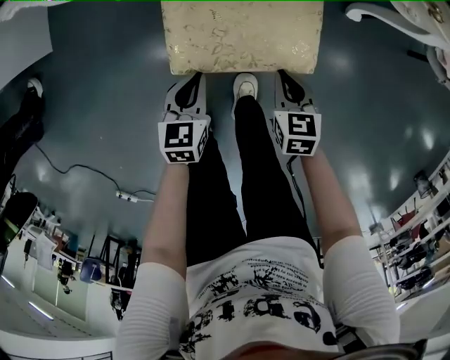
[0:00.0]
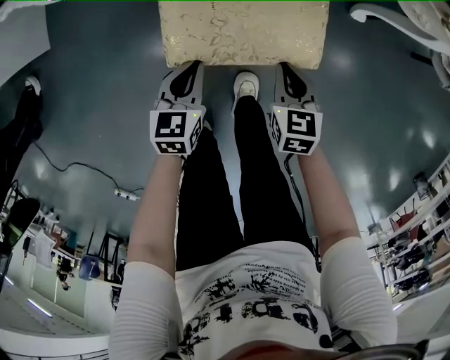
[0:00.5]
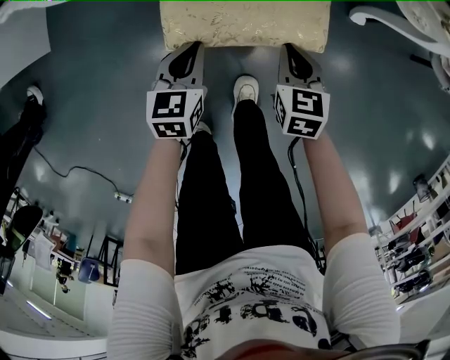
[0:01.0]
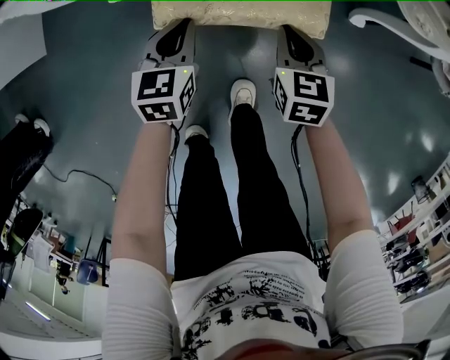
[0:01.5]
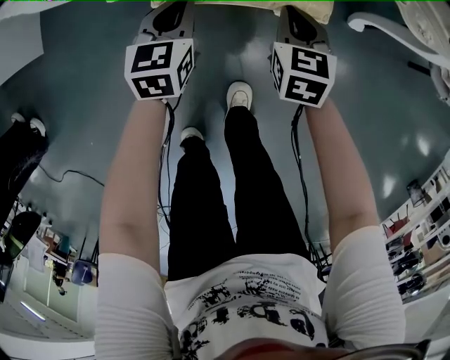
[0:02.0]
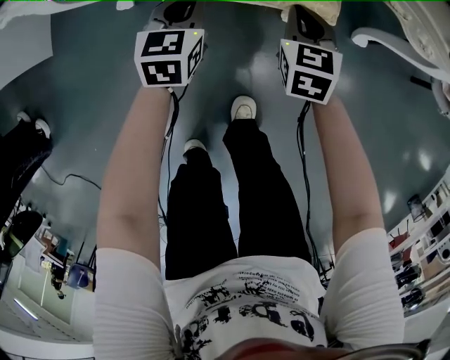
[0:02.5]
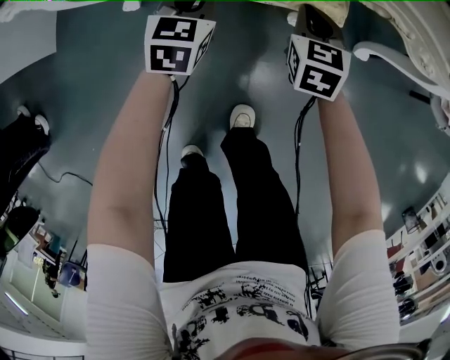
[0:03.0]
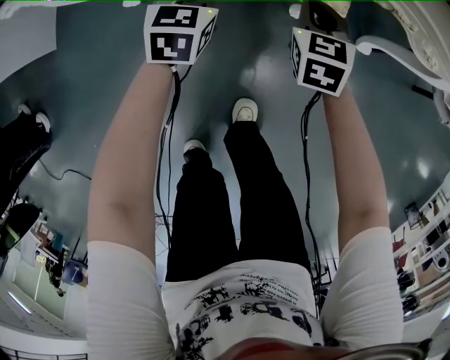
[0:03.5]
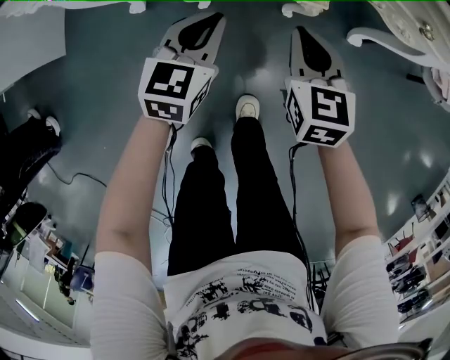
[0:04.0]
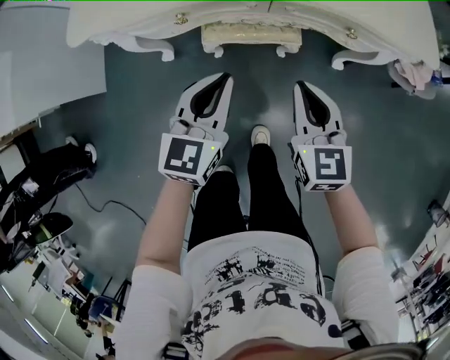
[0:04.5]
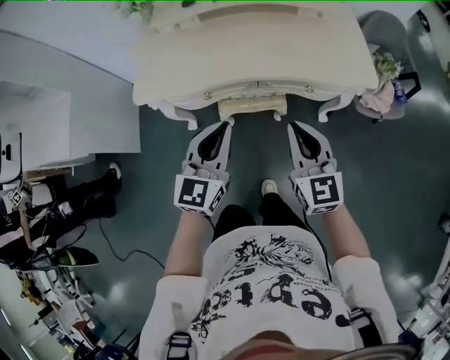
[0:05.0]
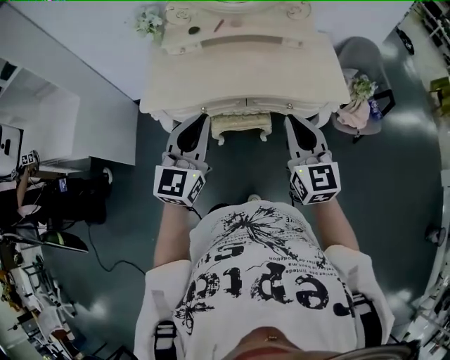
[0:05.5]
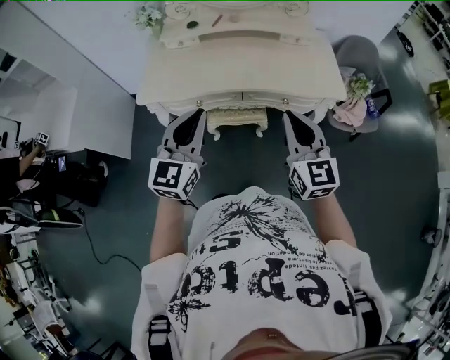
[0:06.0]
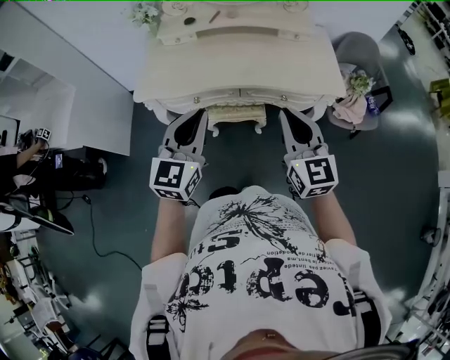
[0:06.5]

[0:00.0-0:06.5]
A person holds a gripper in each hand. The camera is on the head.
0:00.0 to 0:02.0: Both grippers move forward, some 20 cm.
0:02.0 to 0:04.5: The two grippers go roughly 35 cm upward. The right gripper rotates roughly 20 degrees. The left gripper turns by approximately 20 degrees.
0:04.5 to 0:06.5: The grippers both shift upward by approximately 35 cm. The right gripper changes its angle by about 20 degrees.

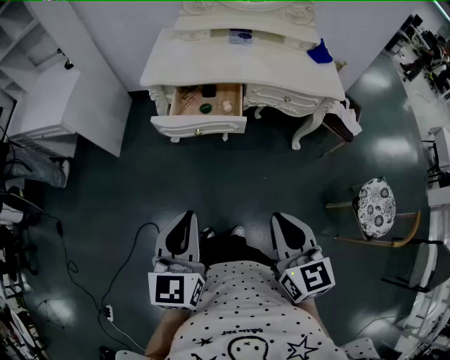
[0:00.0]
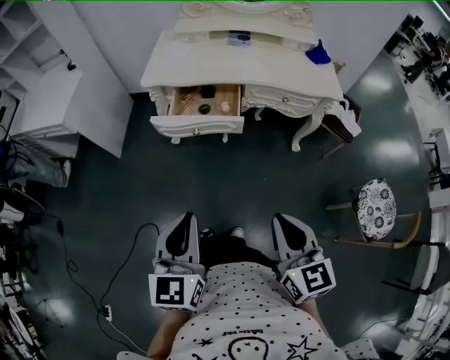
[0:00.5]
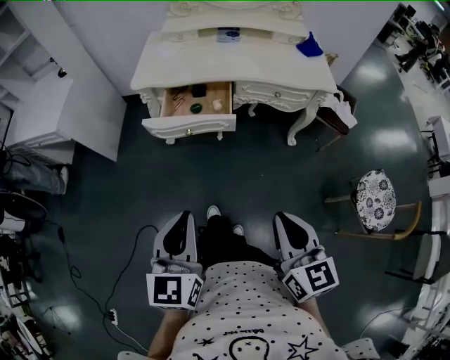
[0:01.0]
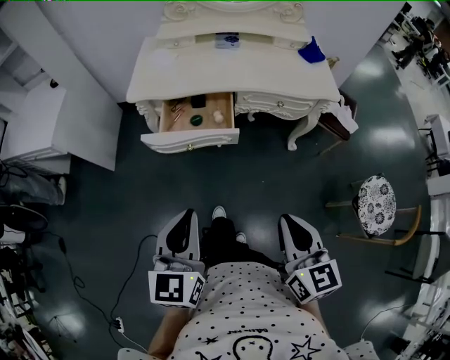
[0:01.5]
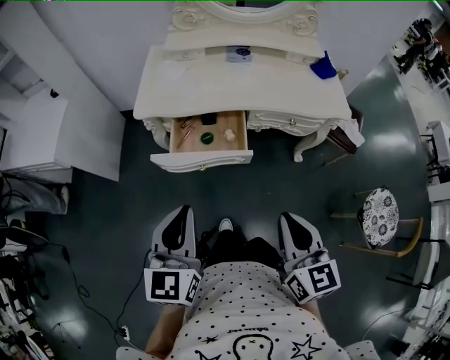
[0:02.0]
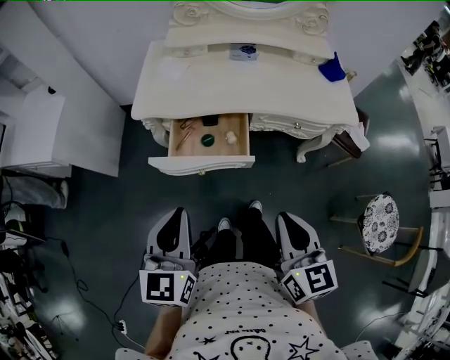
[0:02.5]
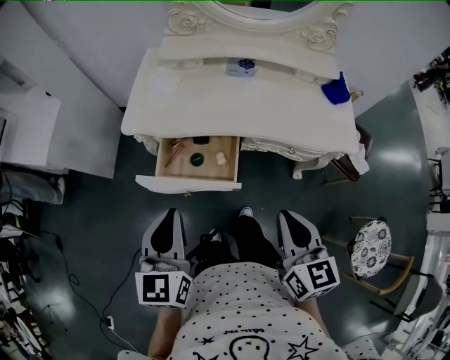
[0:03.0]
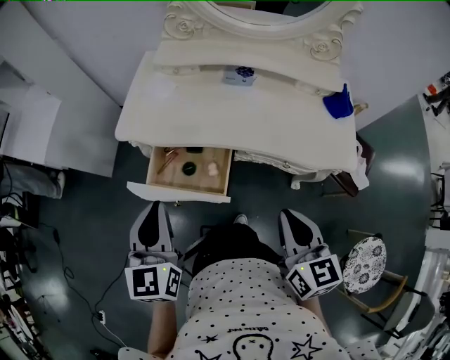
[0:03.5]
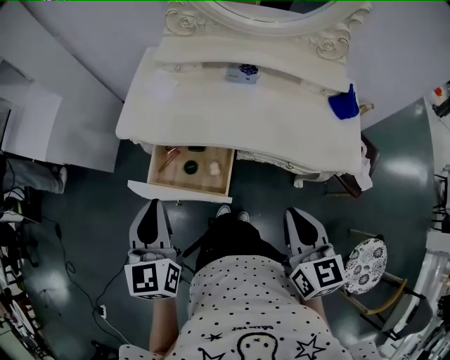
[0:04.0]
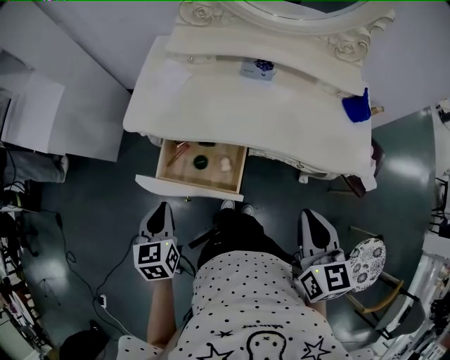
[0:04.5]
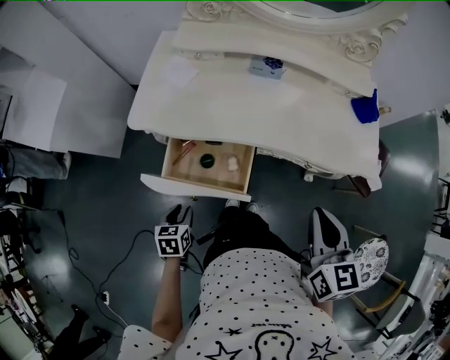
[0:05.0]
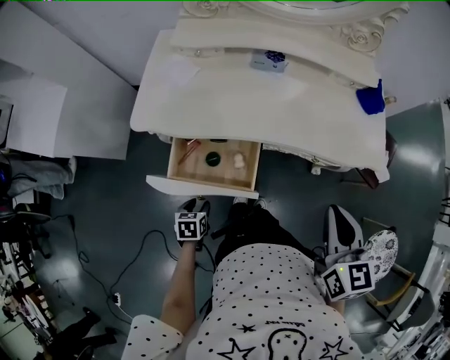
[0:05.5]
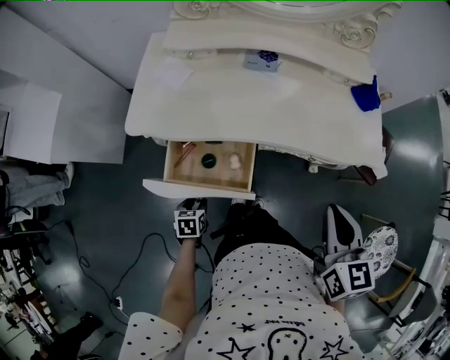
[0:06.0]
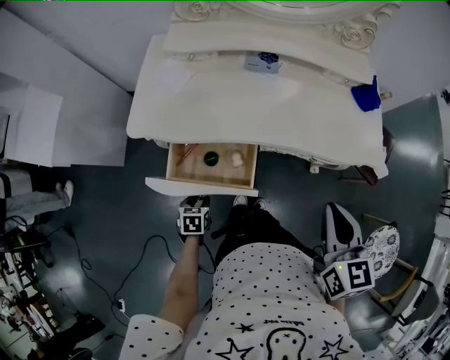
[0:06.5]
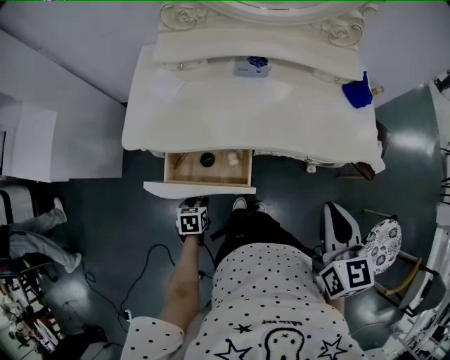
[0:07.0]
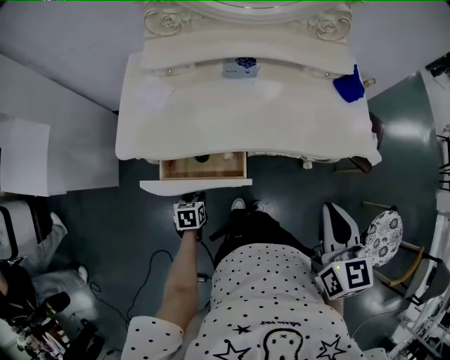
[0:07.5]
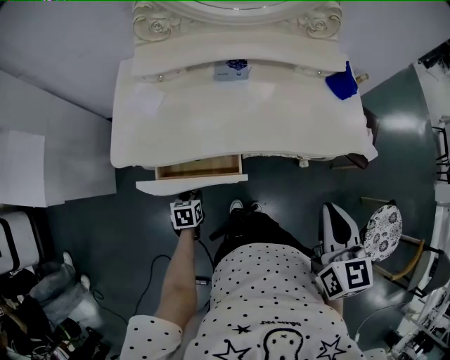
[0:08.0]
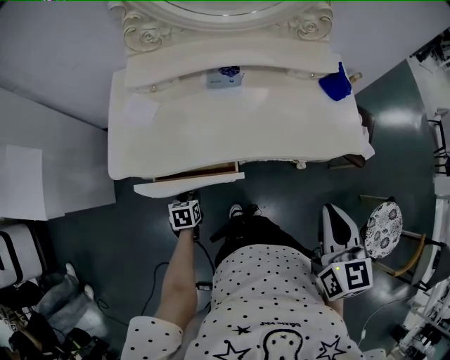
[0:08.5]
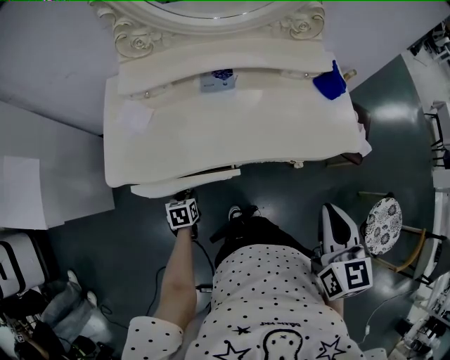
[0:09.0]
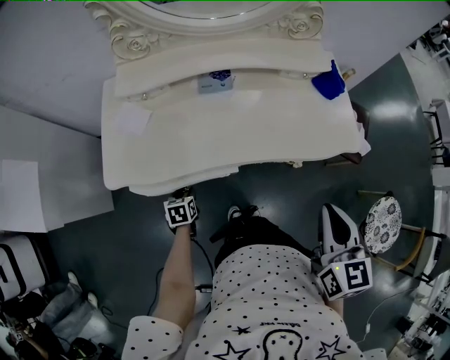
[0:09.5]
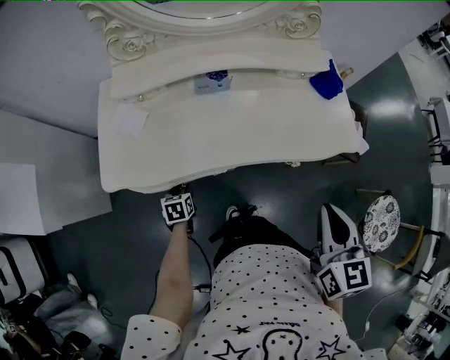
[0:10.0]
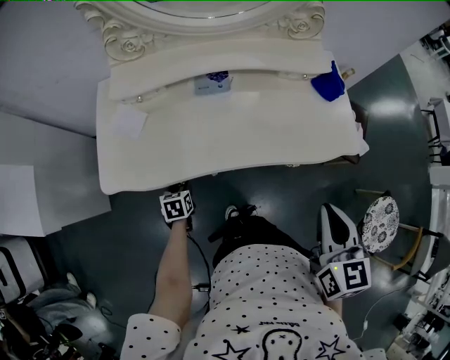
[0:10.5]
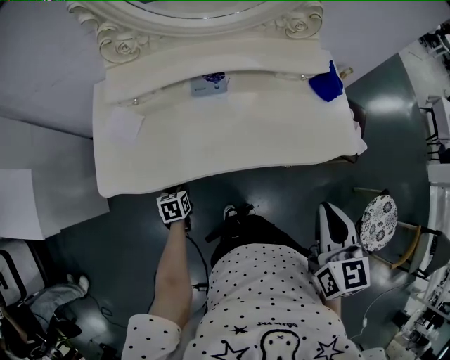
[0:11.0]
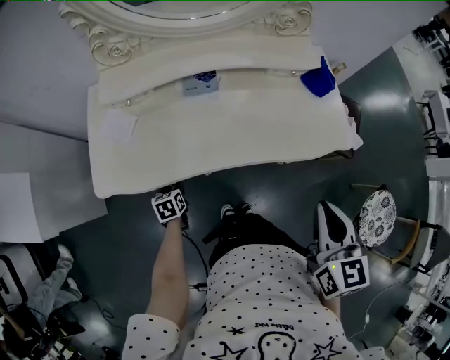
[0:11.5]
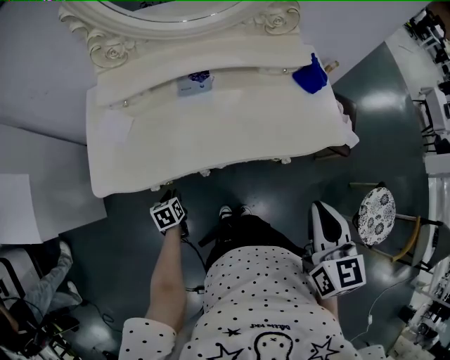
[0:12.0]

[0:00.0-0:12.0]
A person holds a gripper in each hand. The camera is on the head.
0:00.0 to 0:02.0: The two grippers go approximately 15 cm forward.
0:02.0 to 0:04.0: The left gripper travels forward by some 20 cm, and rotates about 20 degrees. The right gripper heads forward and to the right, covering about 25 cm.
0:04.0 to 0:06.0: The left gripper heads downward, covering about 35 cm, tilts its fingers about 50 degrees downward, and opens.
0:06.0 to 0:08.0: The left gripper moves forward, approximately 10 cm.
0:08.0 to 0:10.0: The left gripper goes roughly 10 cm forward.
0:10.0 to 0:12.0: The grippers make only small movements.

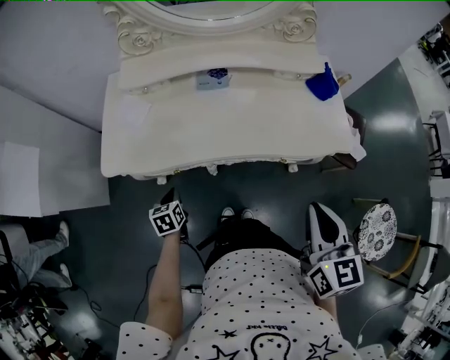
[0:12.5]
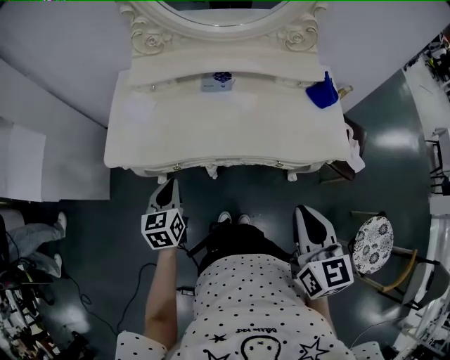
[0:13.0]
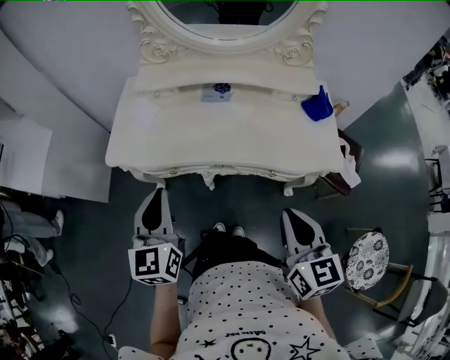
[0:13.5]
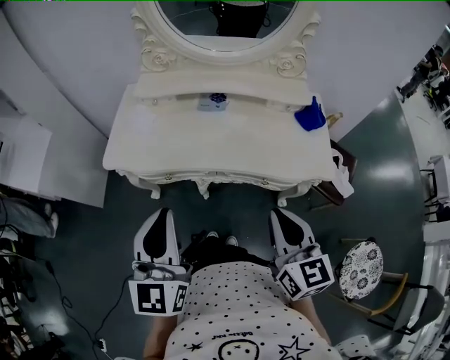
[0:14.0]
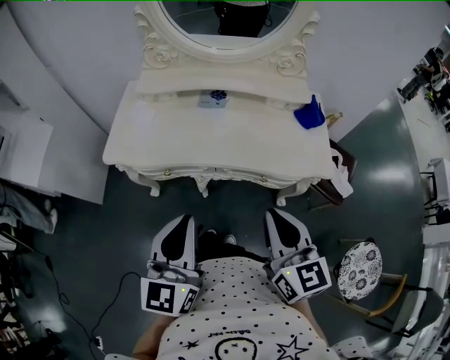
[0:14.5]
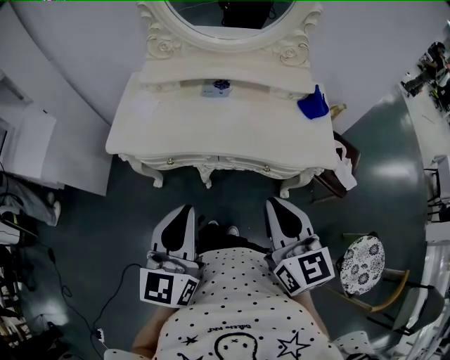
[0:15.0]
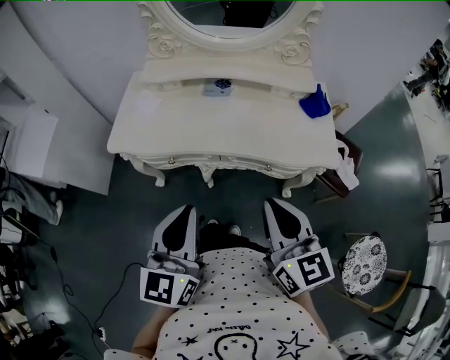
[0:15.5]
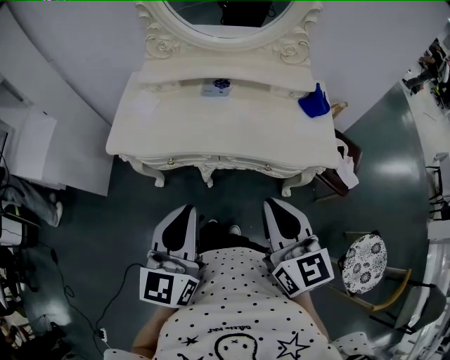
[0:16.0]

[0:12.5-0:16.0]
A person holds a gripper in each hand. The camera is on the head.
0:12.5 to 0:14.5: The left gripper heads upward, to the right and backward, covering approximately 40 cm, and angles its fingers upward, by approximately 50 degrees. The right gripper changes place by approximately 5 cm, and changes its angle by approximately 20 degrees.
0:14.5 to 0:16.0: There are only small adjustments of the grippers.

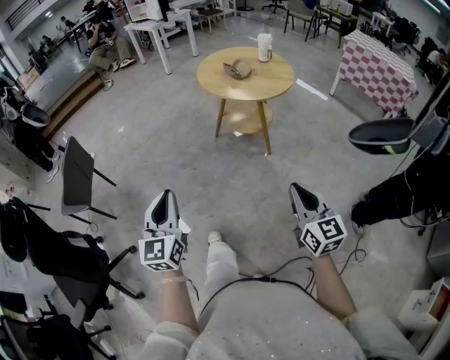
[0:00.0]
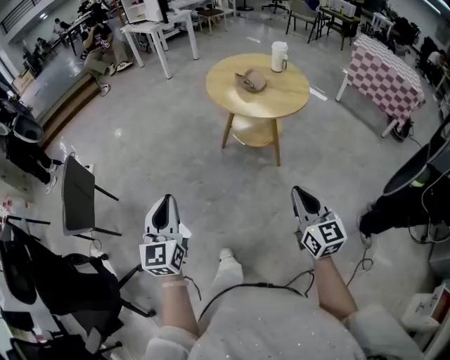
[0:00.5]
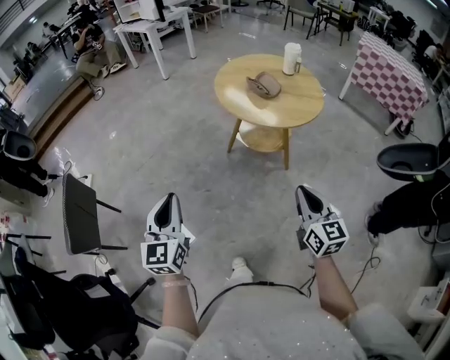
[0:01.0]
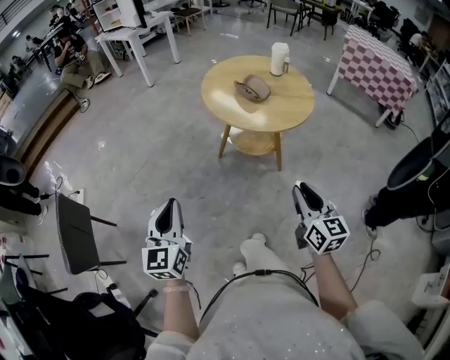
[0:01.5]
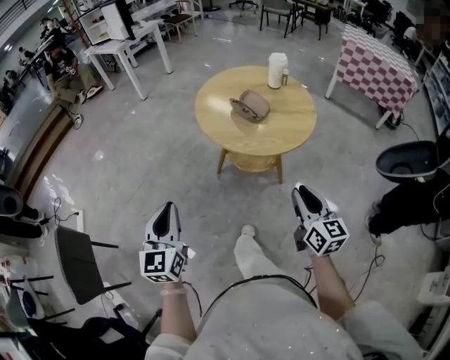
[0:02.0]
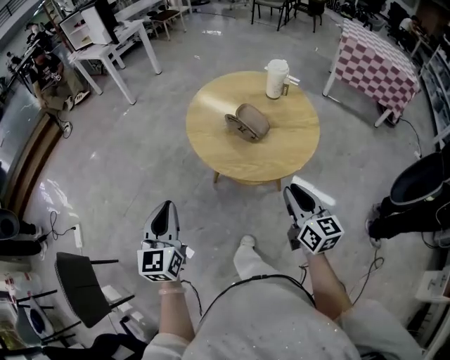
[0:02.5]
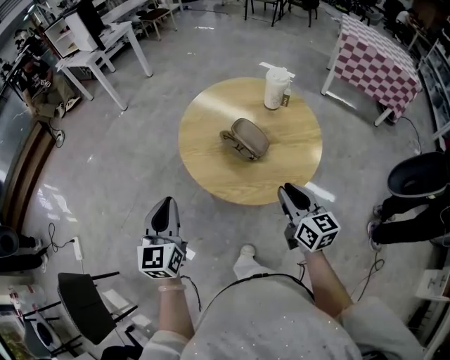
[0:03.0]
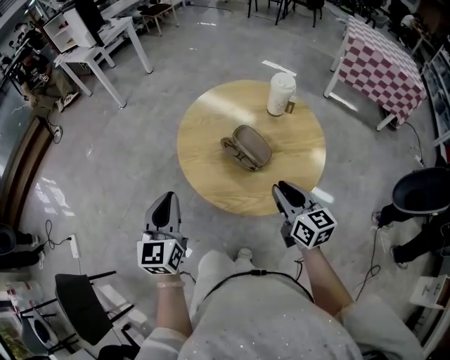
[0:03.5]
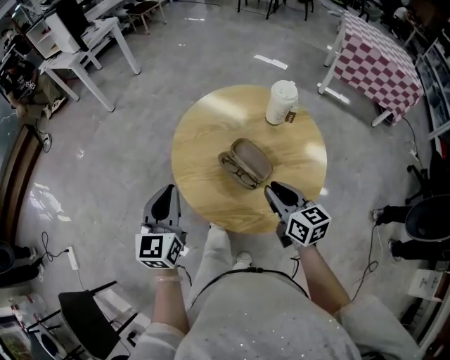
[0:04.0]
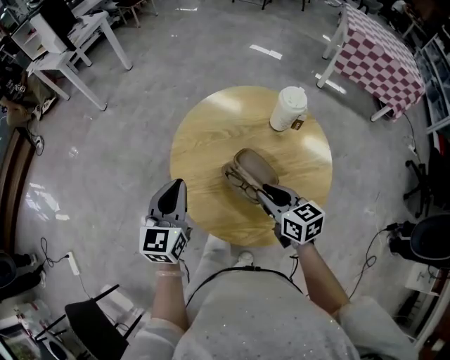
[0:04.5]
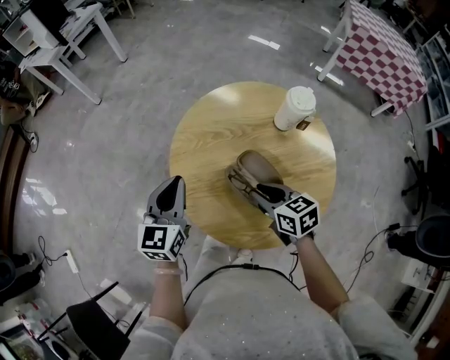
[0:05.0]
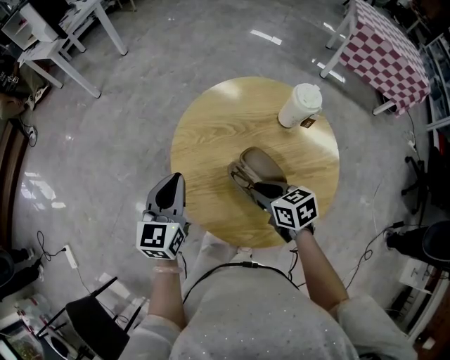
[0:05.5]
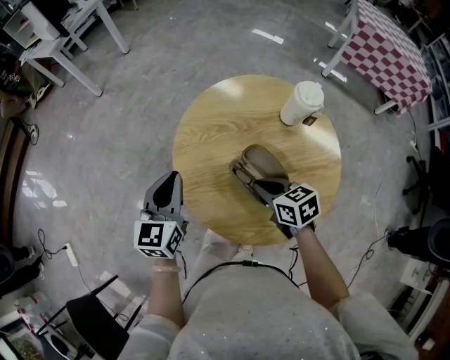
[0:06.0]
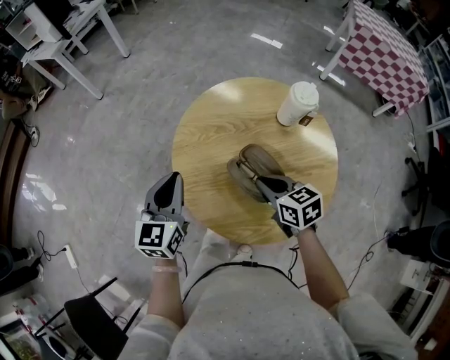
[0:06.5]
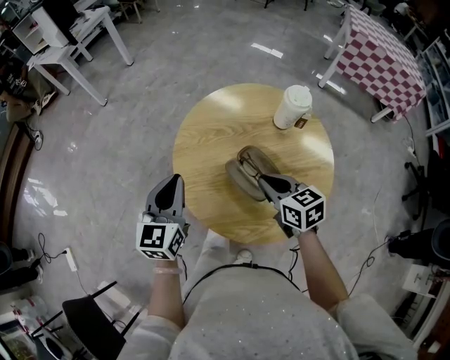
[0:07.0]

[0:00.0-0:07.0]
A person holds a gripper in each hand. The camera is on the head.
0:00.0 to 0:02.0: The two grippers go about 35 cm forward. The right gripper opens up.
0:02.0 to 0:03.5: The grippers both shift forward by some 30 cm.
0:03.5 to 0:05.0: The right gripper is displaced forward, downward and to the left by roughly 15 cm, and swivels about 30 degrees. Meanwhile the left gripper shifts about 20 cm forward.
0:05.0 to 0:07.0: There are only small adjustments of the grippers.
